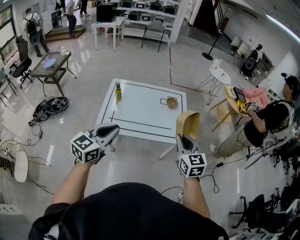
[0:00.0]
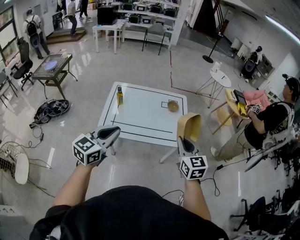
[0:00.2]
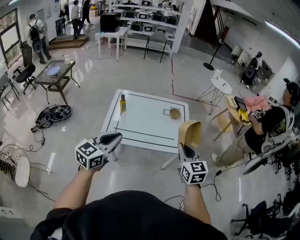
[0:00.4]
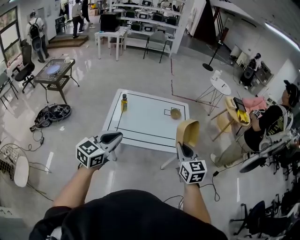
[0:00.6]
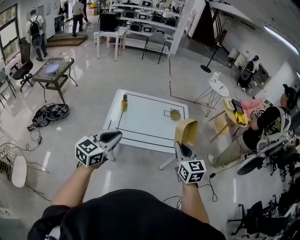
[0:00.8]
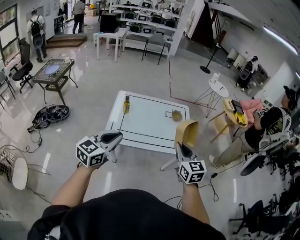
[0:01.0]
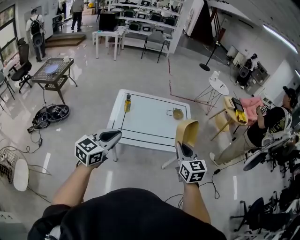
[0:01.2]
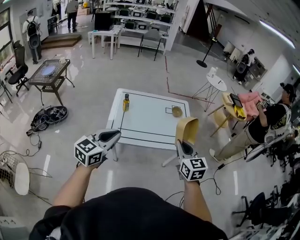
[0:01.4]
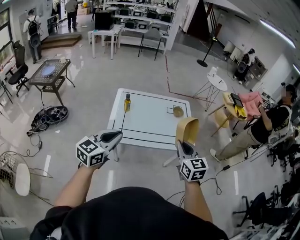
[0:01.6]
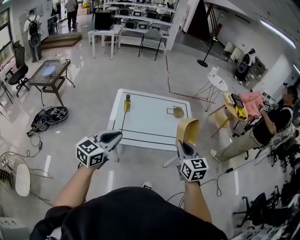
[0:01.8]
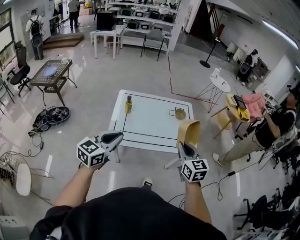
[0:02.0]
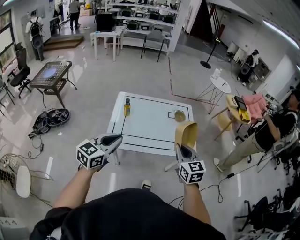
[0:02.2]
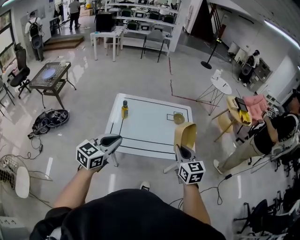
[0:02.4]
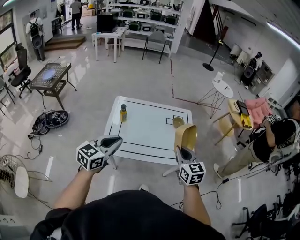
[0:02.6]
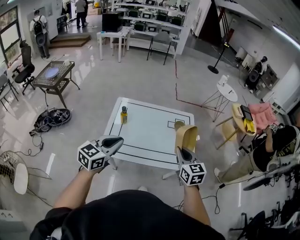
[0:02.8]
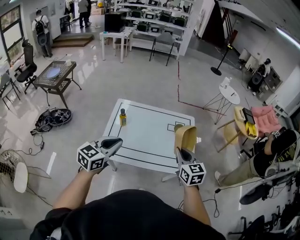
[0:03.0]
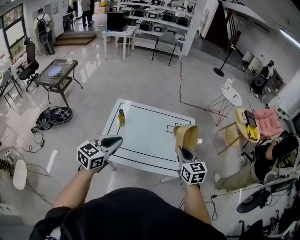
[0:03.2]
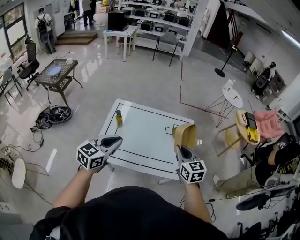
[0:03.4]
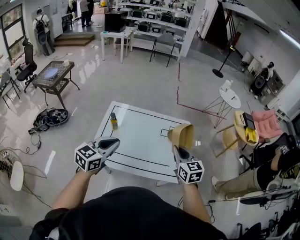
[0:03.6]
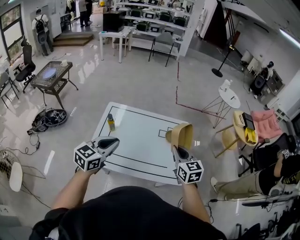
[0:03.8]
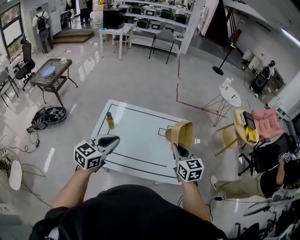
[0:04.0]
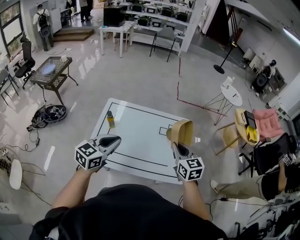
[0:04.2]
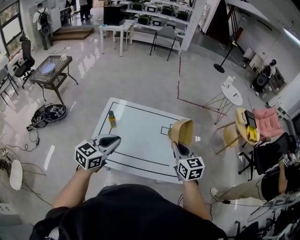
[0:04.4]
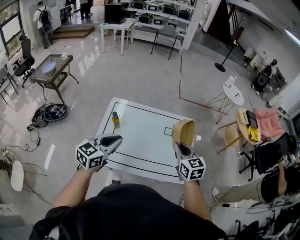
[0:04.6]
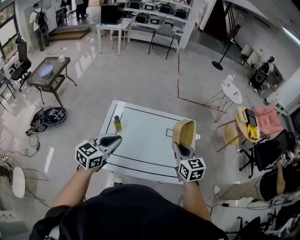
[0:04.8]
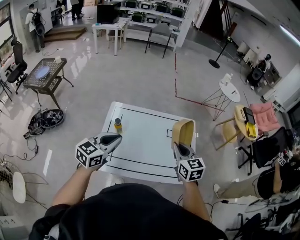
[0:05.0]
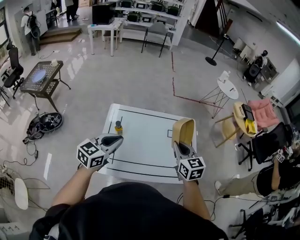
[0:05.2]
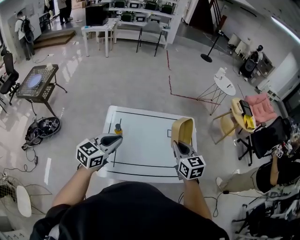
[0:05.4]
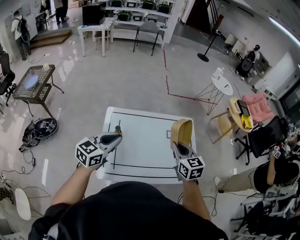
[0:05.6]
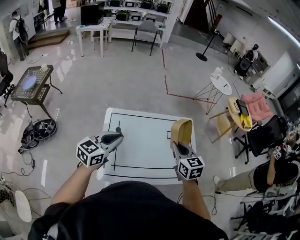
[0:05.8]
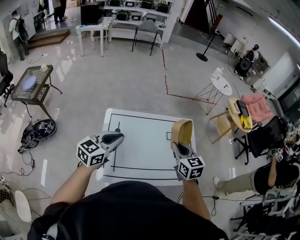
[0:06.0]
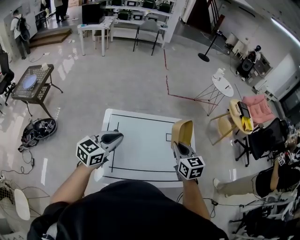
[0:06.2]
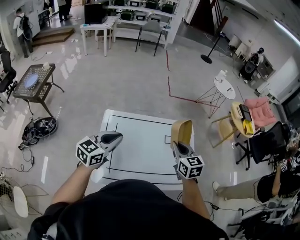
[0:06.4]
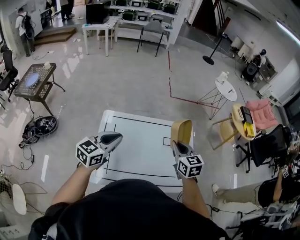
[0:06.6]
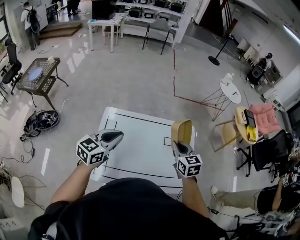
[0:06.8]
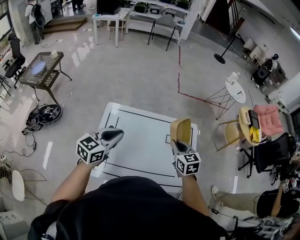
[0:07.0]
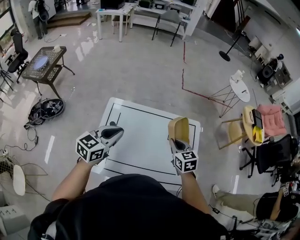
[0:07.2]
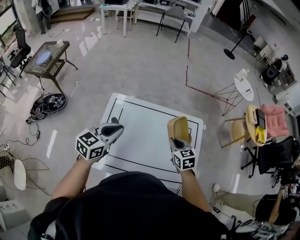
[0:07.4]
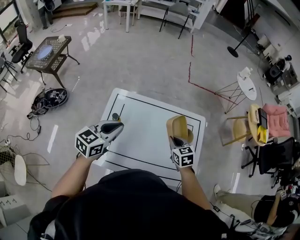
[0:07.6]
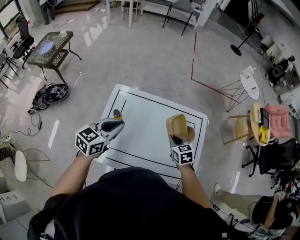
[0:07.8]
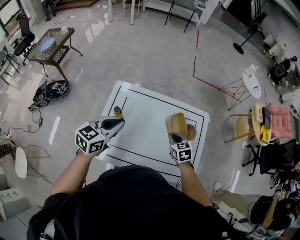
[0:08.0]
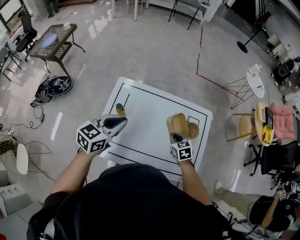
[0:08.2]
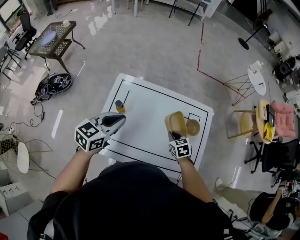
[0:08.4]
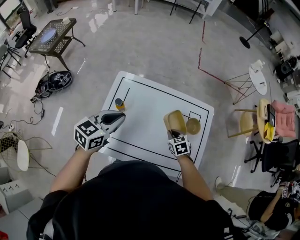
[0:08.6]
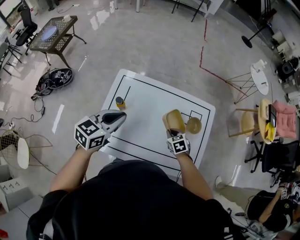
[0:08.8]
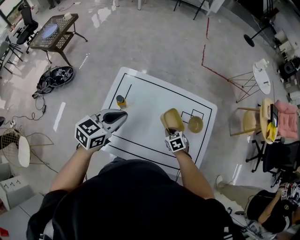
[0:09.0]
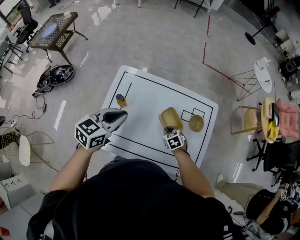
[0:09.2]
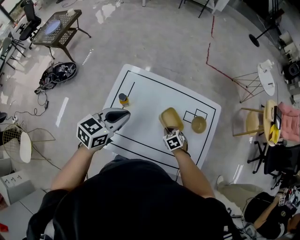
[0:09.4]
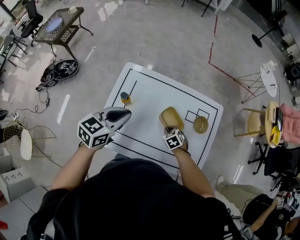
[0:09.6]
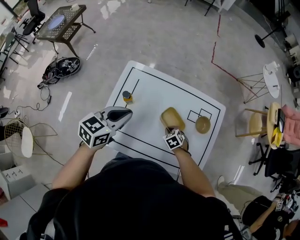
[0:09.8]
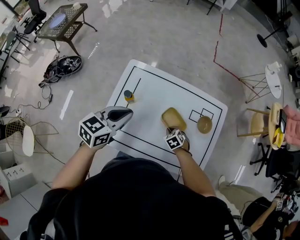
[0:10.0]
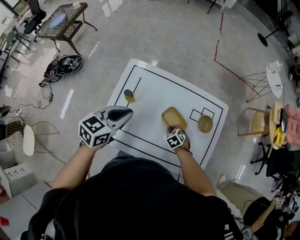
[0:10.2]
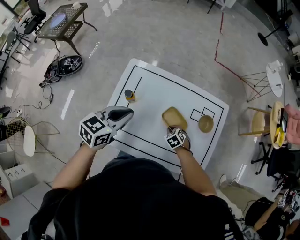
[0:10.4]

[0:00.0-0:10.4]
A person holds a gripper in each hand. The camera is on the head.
0:00.0 to 0:01.4: Both grippers move to the left, roughly 10 cm.
0:01.4 to 0:03.0: The two grippers go approximately 15 cm forward.
0:03.0 to 0:04.4: The left gripper shifts approximately 10 cm forward and to the right; the right gripper is displaced forward by approximately 10 cm.
0:04.4 to 0:06.0: The right gripper is displaced to the left by roughly 10 cm, while the left gripper travels to the left and forward by some 15 cm.
0:06.0 to 0:07.4: The right gripper heads downward and forward, covering approximately 15 cm, while the left gripper shifts by approximately 10 cm.
0:07.4 to 0:09.0: The right gripper moves downward, some 20 cm, and turns by roughly 30 degrees.
0:09.0 to 0:10.4: The right gripper shifts some 5 cm downward.

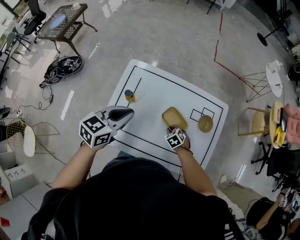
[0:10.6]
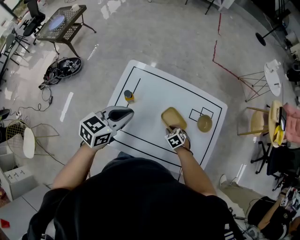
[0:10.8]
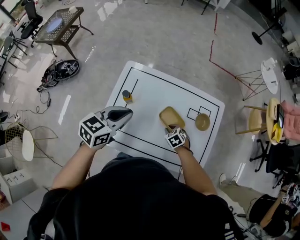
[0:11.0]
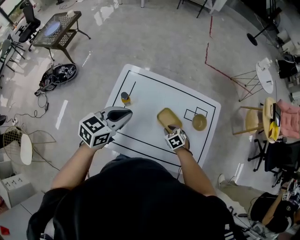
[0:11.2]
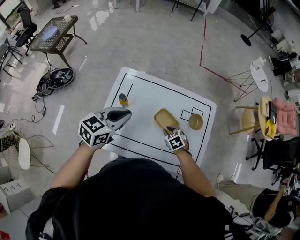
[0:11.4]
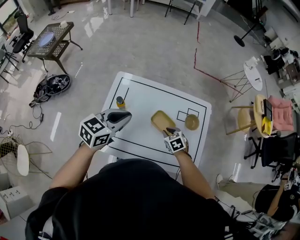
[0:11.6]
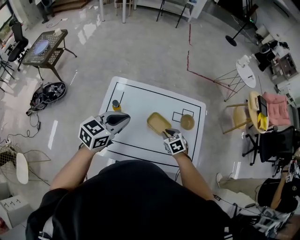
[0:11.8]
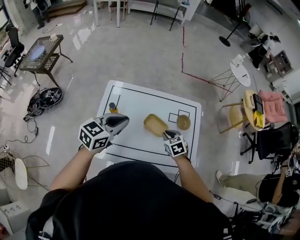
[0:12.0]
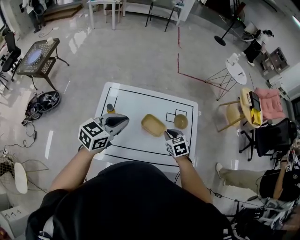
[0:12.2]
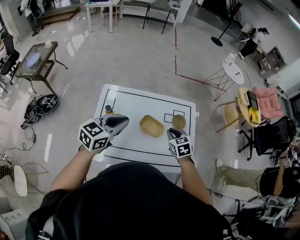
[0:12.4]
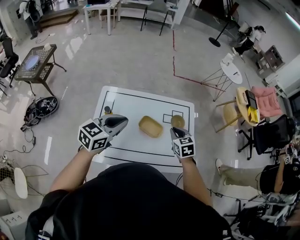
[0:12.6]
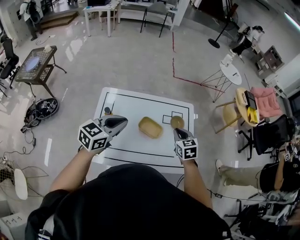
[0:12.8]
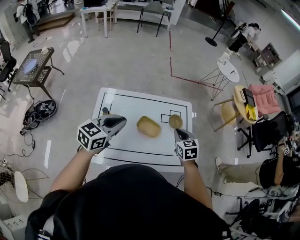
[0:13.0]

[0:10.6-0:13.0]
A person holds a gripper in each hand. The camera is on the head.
0:10.6 to 0:11.8: The left gripper goes some 5 cm upward. Meanwhile the right gripper heads upward, covering about 15 cm, and changes its angle by roughly 20 degrees.
0:11.8 to 0:13.0: The right gripper heads upward and to the right, covering some 15 cm, and turns by about 30 degrees.

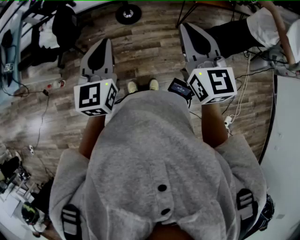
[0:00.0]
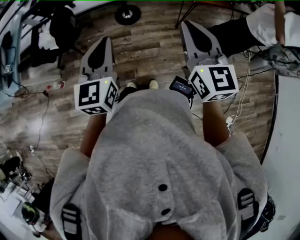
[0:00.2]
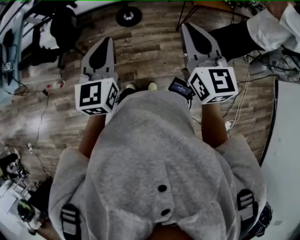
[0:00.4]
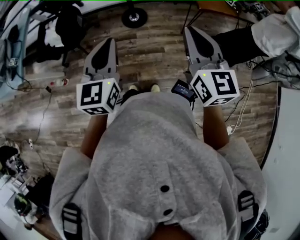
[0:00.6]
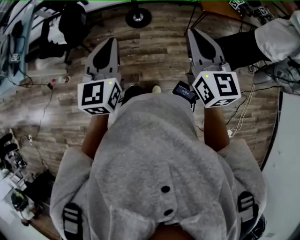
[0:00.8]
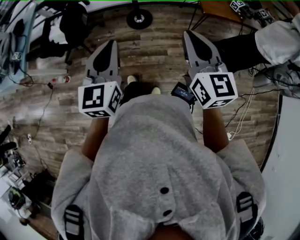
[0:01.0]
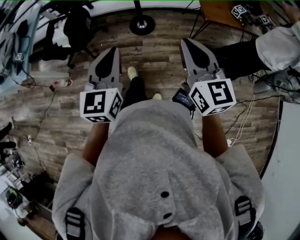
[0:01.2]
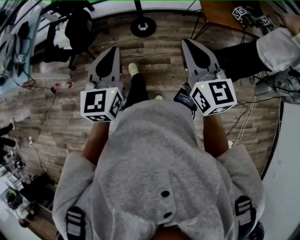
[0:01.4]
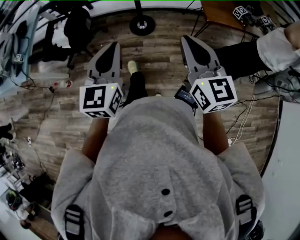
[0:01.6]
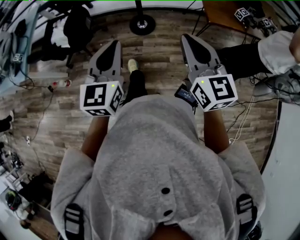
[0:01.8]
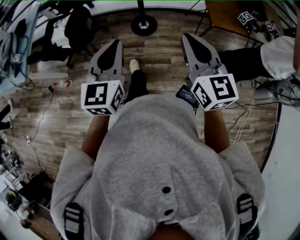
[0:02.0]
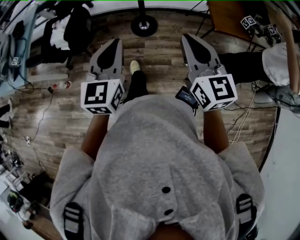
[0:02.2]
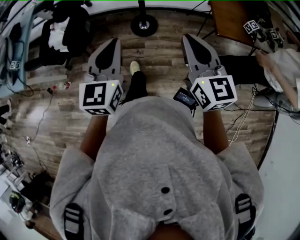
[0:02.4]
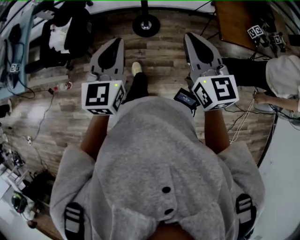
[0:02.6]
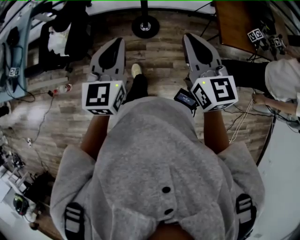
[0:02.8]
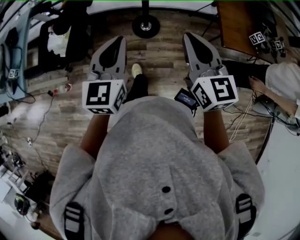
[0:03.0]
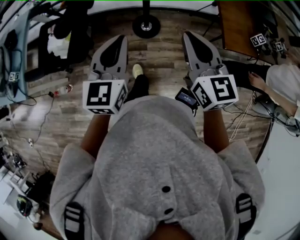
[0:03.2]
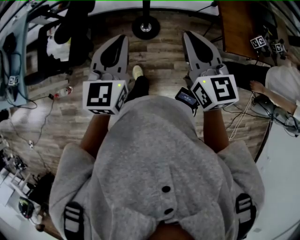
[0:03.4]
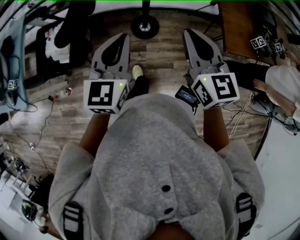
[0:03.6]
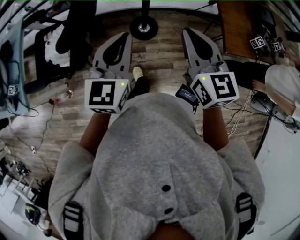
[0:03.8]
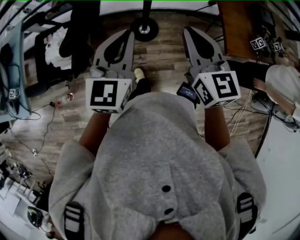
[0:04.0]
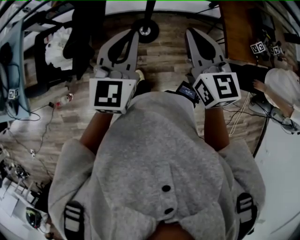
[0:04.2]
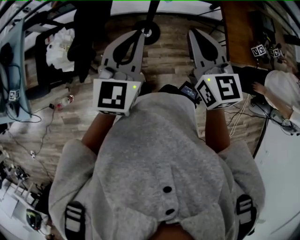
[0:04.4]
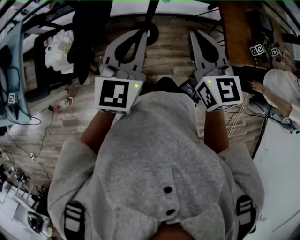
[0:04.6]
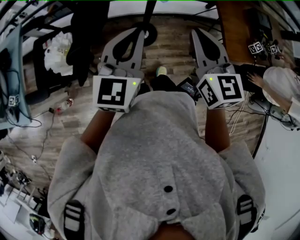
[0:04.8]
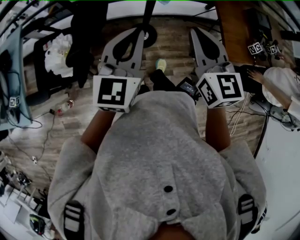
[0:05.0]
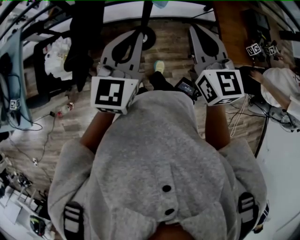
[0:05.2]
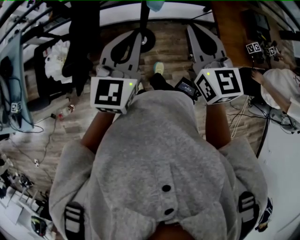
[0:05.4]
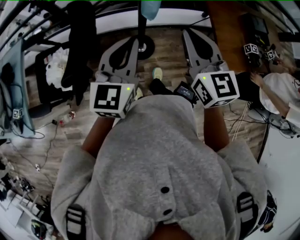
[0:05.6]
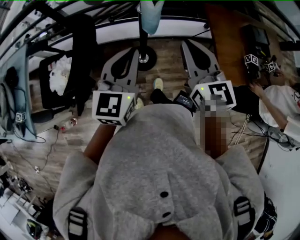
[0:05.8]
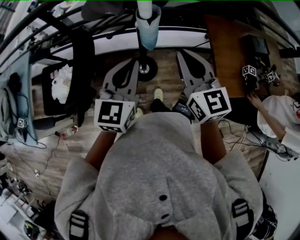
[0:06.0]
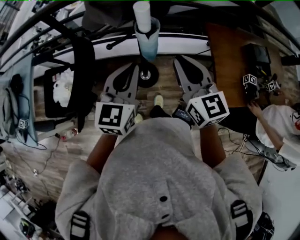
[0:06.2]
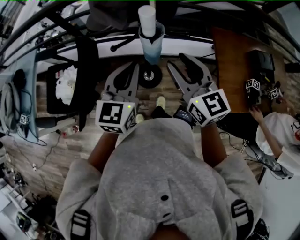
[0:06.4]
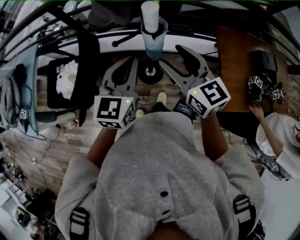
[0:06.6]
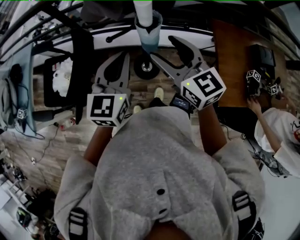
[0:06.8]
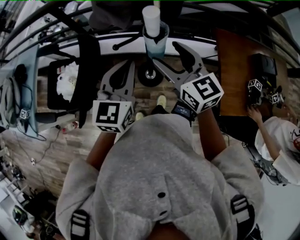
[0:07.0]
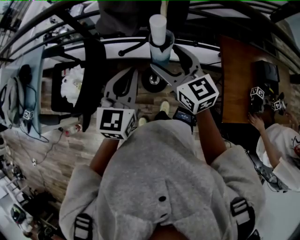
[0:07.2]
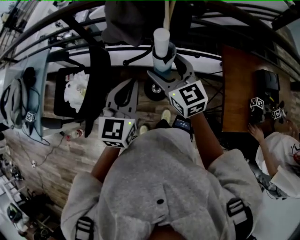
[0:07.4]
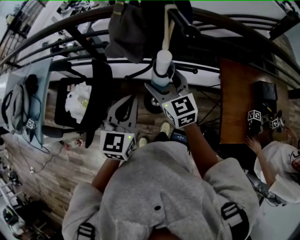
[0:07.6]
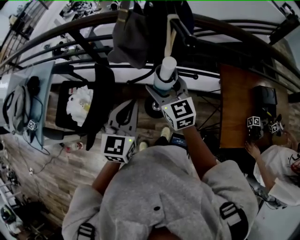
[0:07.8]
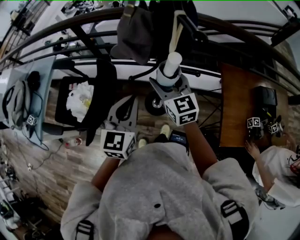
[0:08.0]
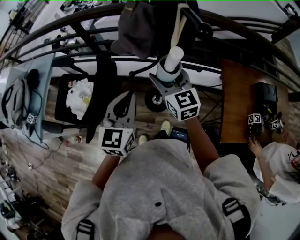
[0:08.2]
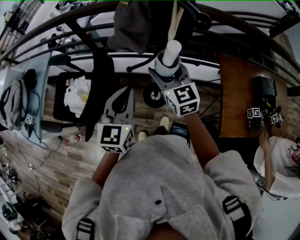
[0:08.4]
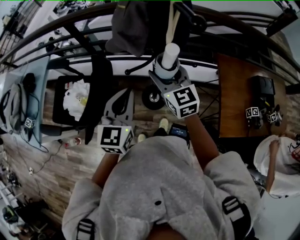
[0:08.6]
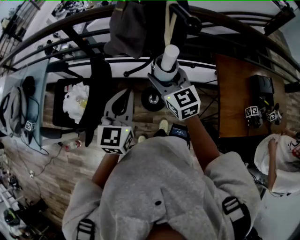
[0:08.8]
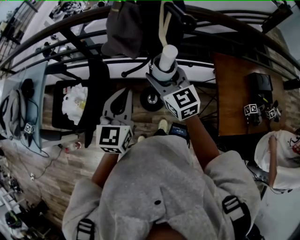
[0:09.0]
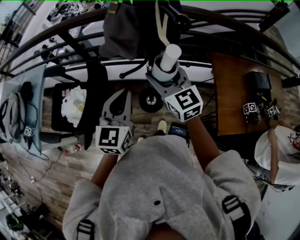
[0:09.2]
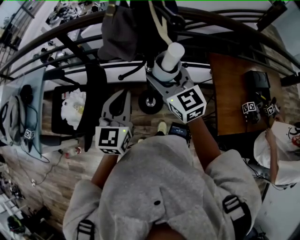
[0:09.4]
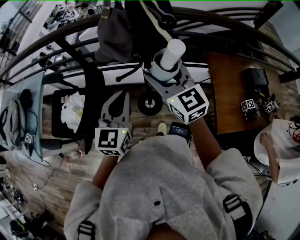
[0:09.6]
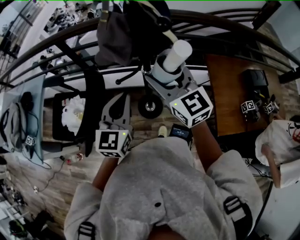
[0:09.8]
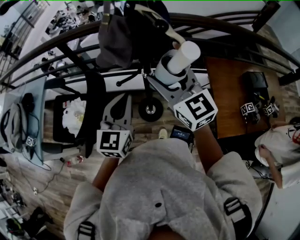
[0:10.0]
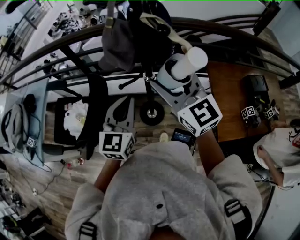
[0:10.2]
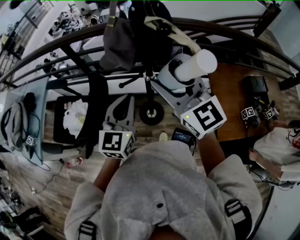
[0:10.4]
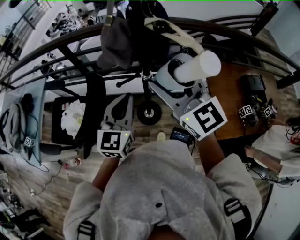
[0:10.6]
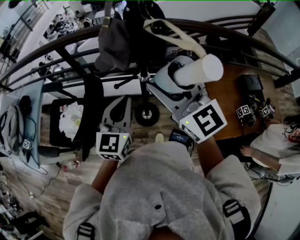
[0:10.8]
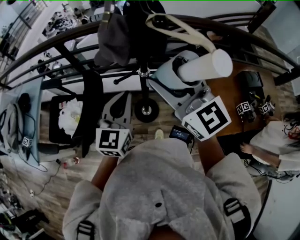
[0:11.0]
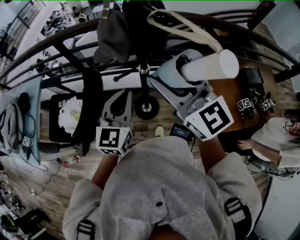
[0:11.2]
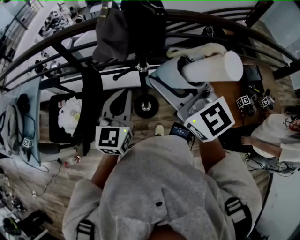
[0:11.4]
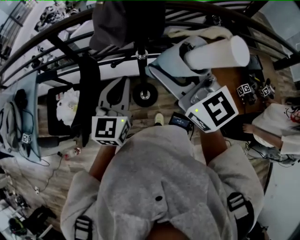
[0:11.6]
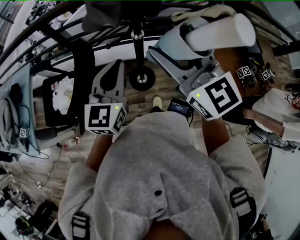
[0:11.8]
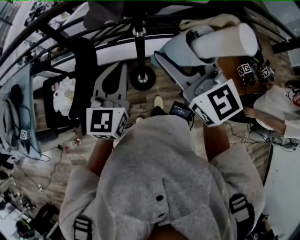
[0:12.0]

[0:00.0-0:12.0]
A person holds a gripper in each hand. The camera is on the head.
0:00.0 to 0:01.6: The grippers stay close to where they were, moving slightly.
0:01.6 to 0:03.0: The two grippers go roughly 25 cm forward.
0:03.0 to 0:04.4: The two grippers go some 15 cm forward and to the left.
0:04.4 to 0:06.0: The two grippers go roughly 15 cm forward and to the right.
0:06.0 to 0:07.6: The left gripper ends up about 5 cm from where it was. The right gripper is displaced forward and to the left by roughly 15 cm, and opens up.
0:07.6 to 0:09.0: The grippers move only a little.
0:09.0 to 0:10.4: The right gripper heads upward and backward, covering approximately 15 cm.
0:10.4 to 0:12.0: The left gripper changes place by about 5 cm, while the right gripper goes roughly 10 cm backward.
